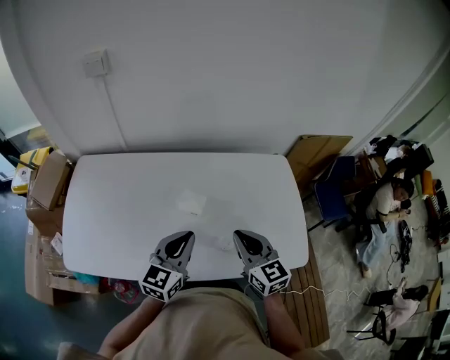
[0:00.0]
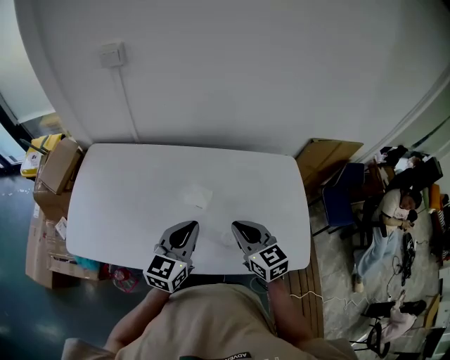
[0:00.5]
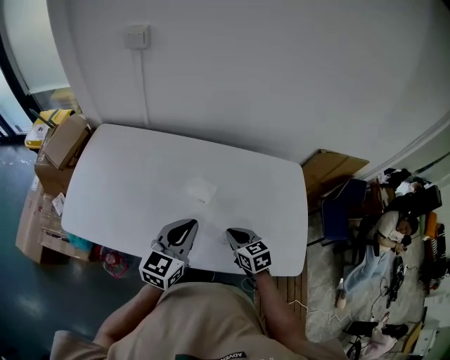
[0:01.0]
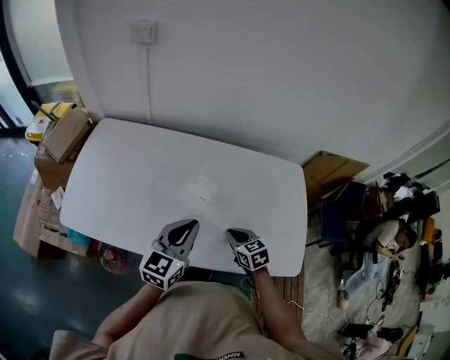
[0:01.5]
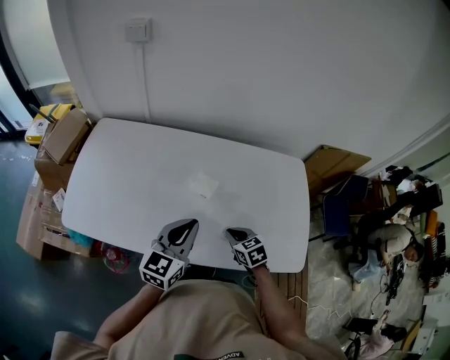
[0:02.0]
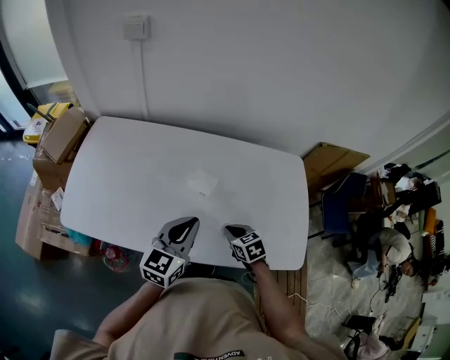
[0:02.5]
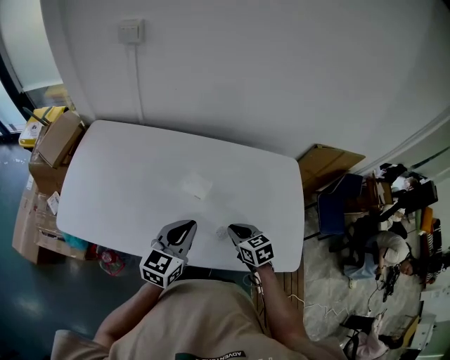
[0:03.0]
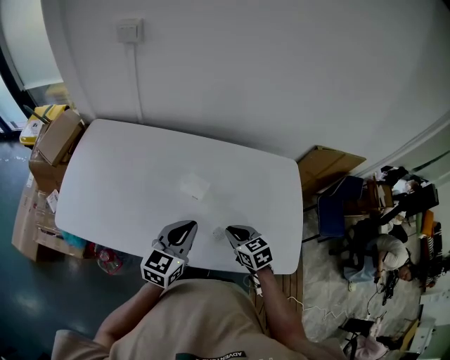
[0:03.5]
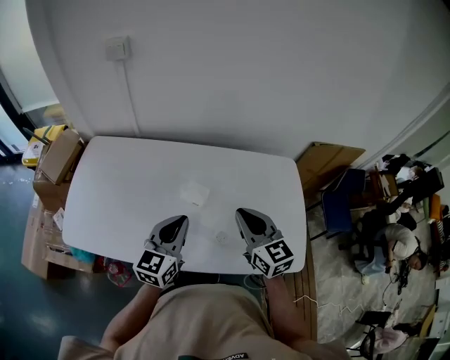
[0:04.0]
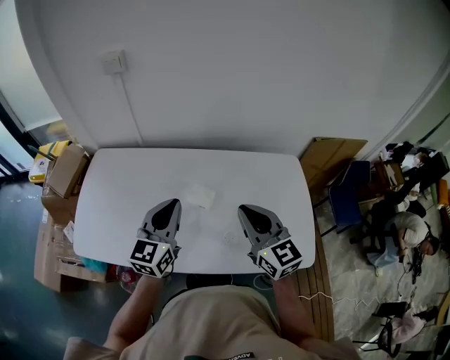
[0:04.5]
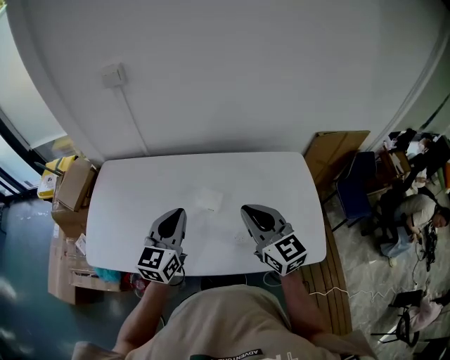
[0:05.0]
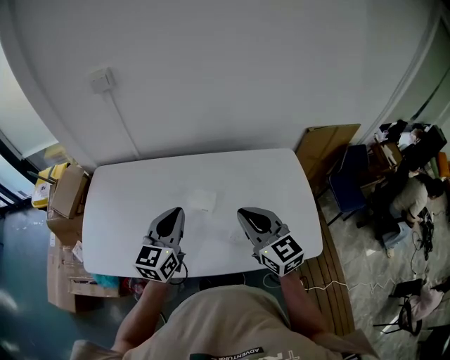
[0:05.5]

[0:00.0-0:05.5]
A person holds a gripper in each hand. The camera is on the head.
0:00.0 to 0:02.0: The right gripper heads downward, covering some 20 cm, and angles its fingers downward, by approximately 30 degrees.
0:02.0 to 0:03.5: The grippers move only a little.
0:03.5 to 0:05.5: The right gripper travels upward by approximately 20 cm, and angles its fingers upward, by about 30 degrees, while the left gripper is displaced upward and to the left by some 10 cm.

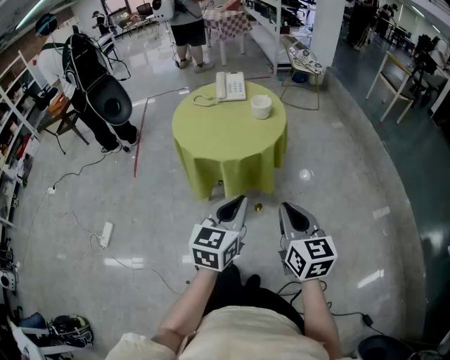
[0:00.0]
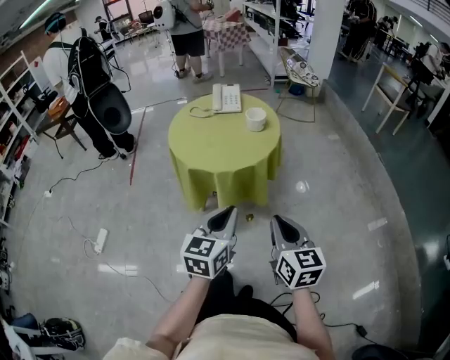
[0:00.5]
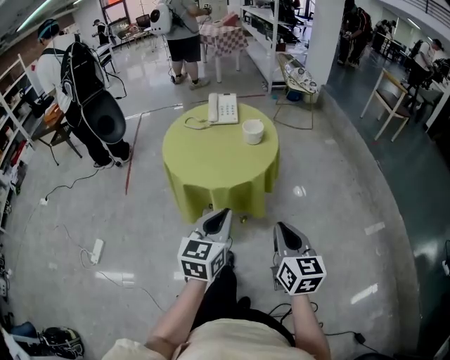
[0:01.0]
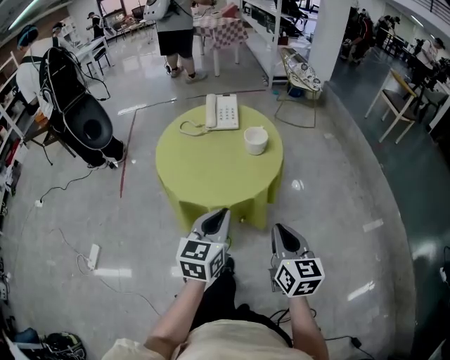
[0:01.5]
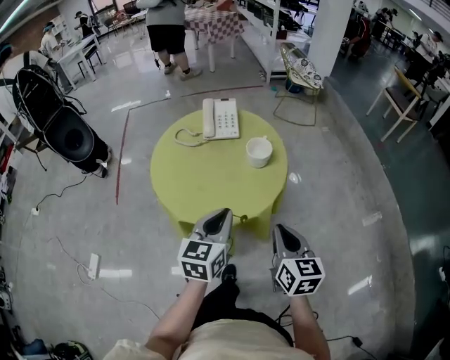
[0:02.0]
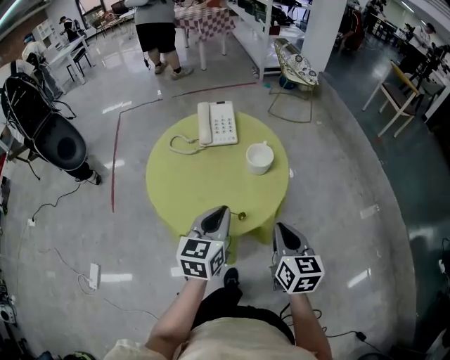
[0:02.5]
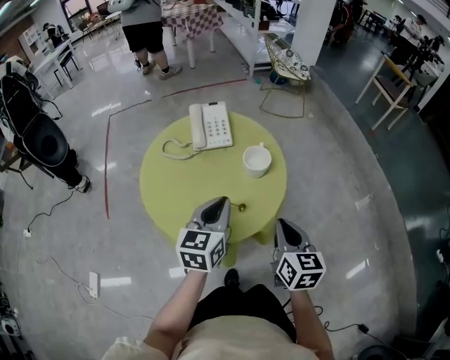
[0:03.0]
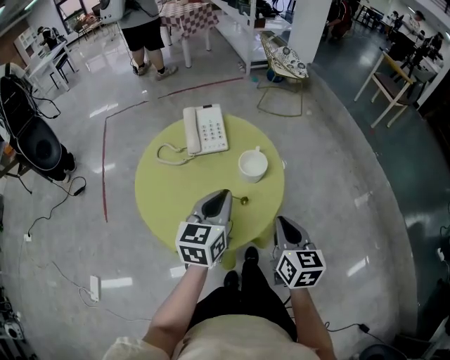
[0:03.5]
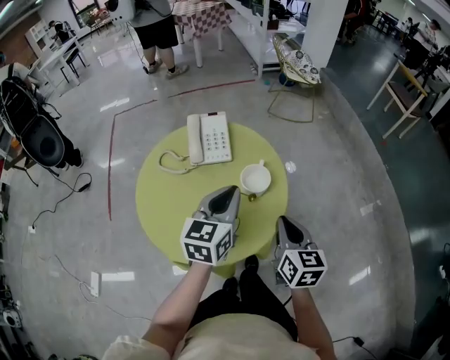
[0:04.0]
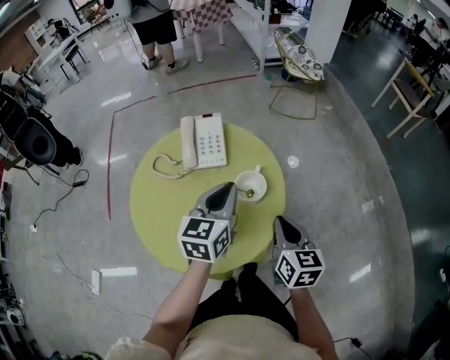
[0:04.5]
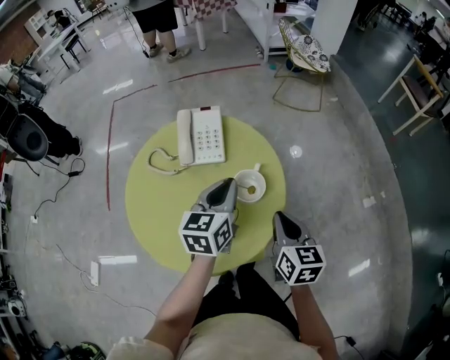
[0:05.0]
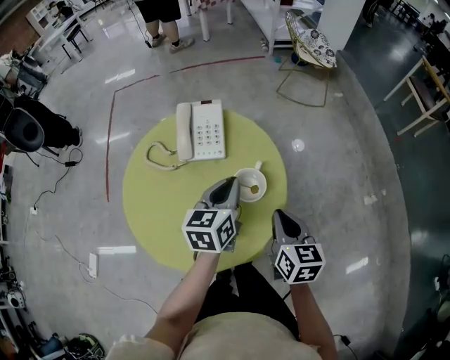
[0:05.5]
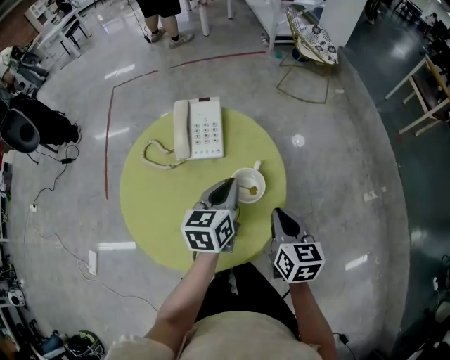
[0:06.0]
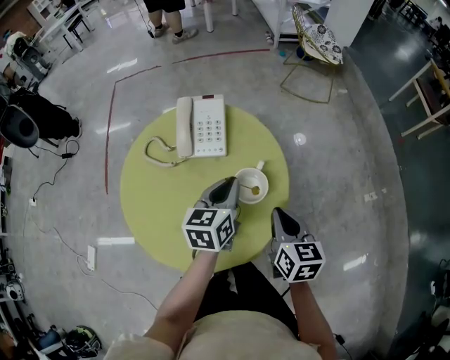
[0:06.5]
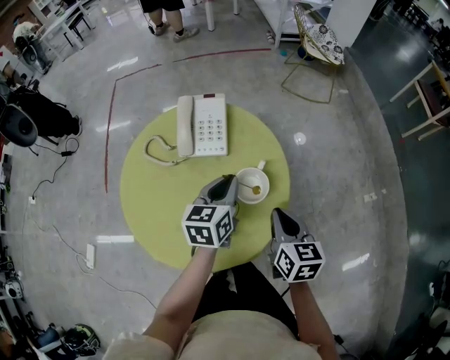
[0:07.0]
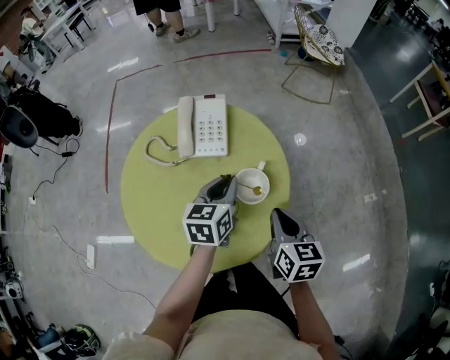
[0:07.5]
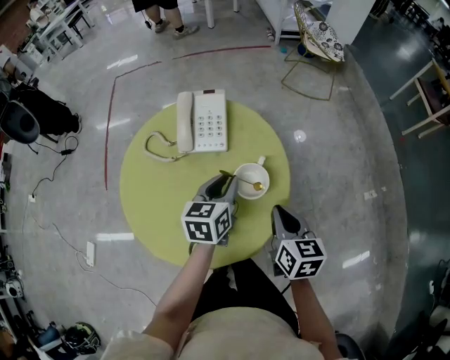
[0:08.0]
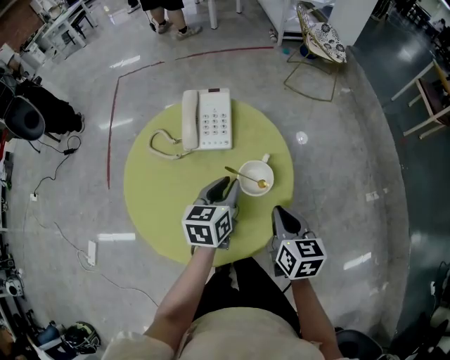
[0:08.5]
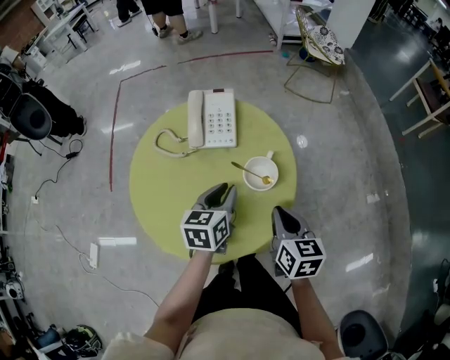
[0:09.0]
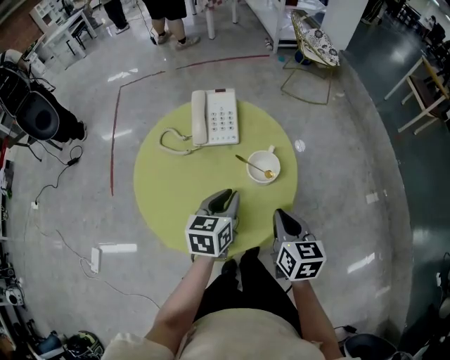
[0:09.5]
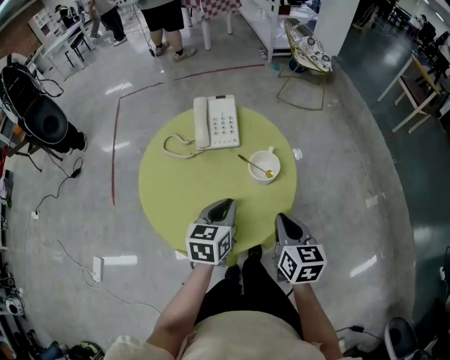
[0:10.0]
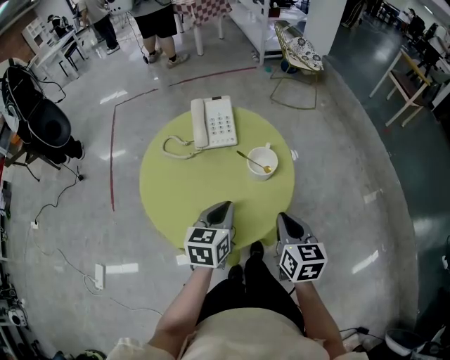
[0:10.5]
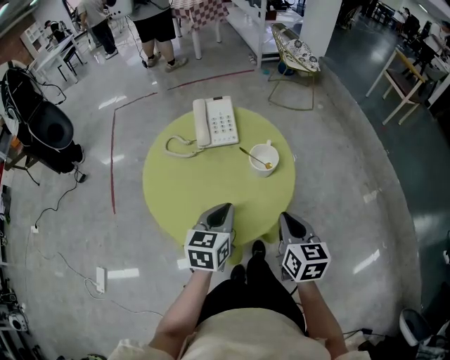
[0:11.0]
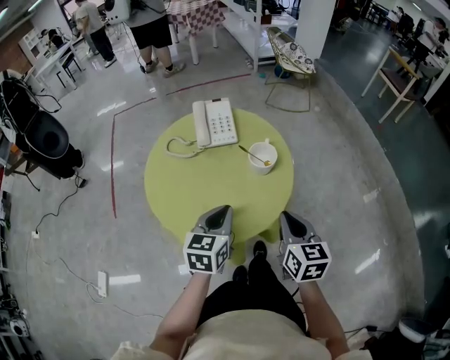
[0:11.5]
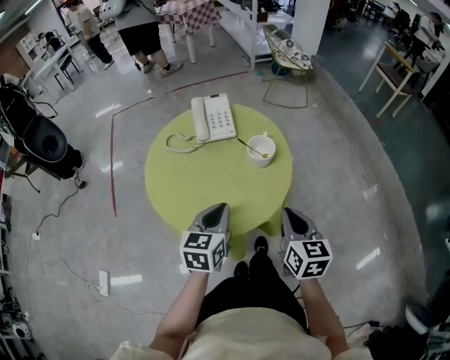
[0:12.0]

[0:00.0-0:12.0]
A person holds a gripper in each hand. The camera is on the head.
0:00.0 to 0:02.0: The grippers both shift forward by some 25 cm.
0:02.0 to 0:04.0: Both grippers move forward, some 20 cm.
0:04.0 to 0:06.0: The right gripper travels forward and downward by some 10 cm. Meanwhile the left gripper heads downward and forward, covering some 15 cm.
0:06.0 to 0:08.0: The grippers stay close to where they were, moving slightly.
0:08.0 to 0:10.0: The grippers both shift backward by some 10 cm.
0:10.0 to 0:12.0: Both grippers travel together backward, approximately 10 cm.

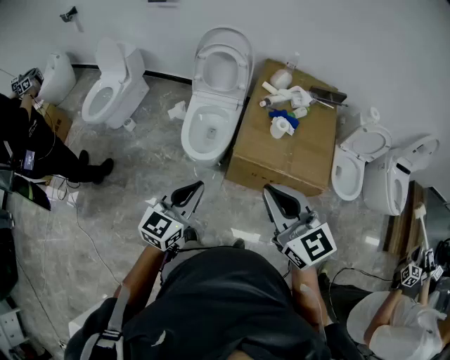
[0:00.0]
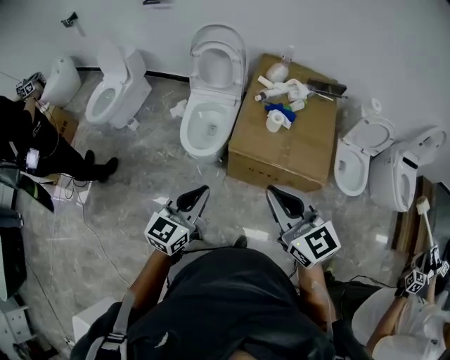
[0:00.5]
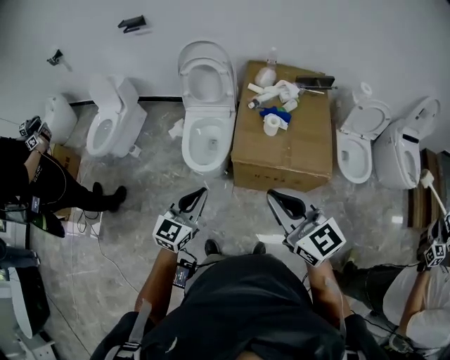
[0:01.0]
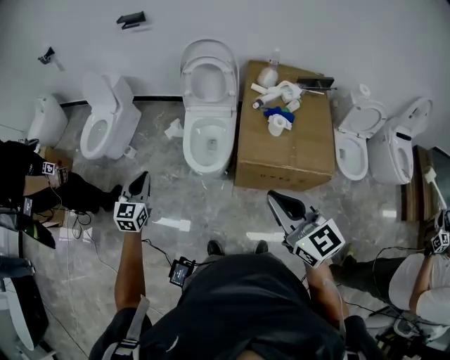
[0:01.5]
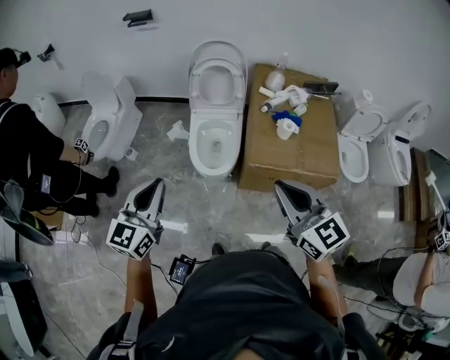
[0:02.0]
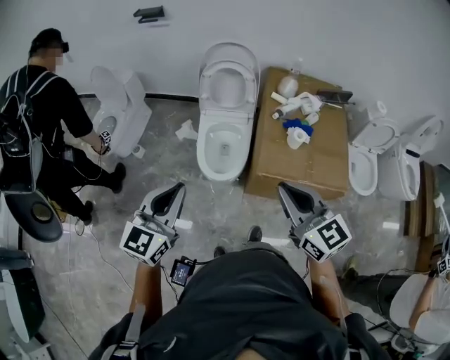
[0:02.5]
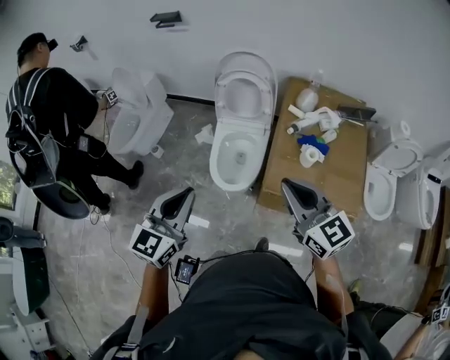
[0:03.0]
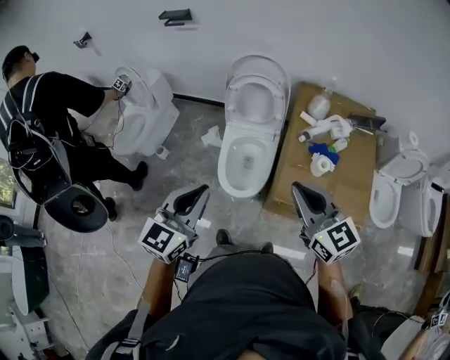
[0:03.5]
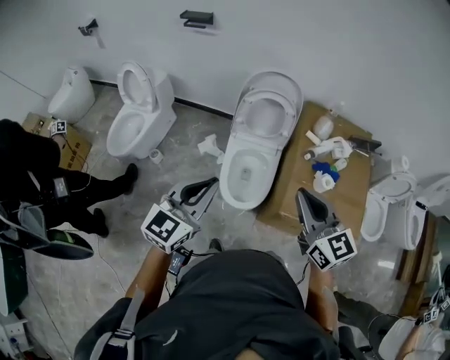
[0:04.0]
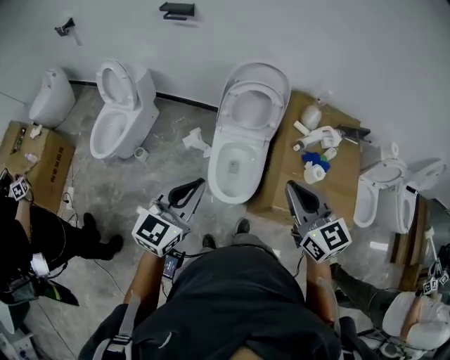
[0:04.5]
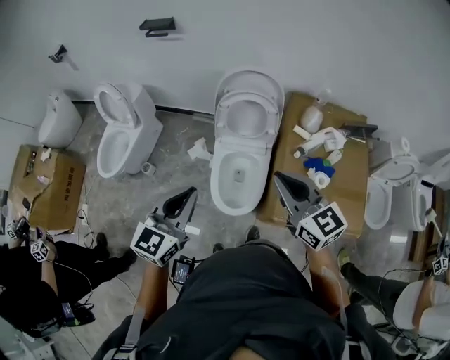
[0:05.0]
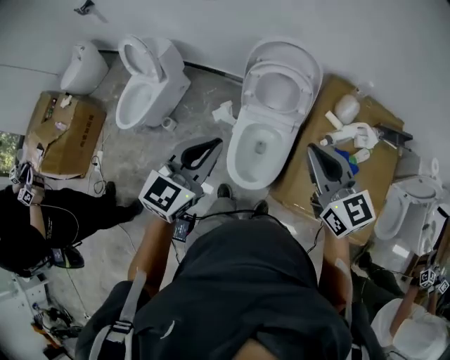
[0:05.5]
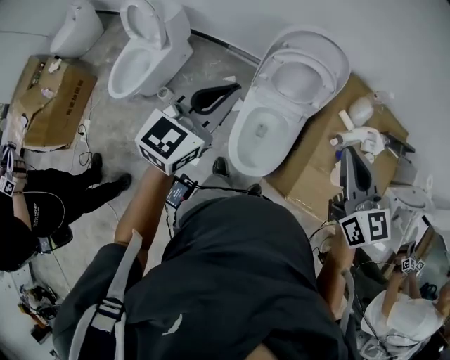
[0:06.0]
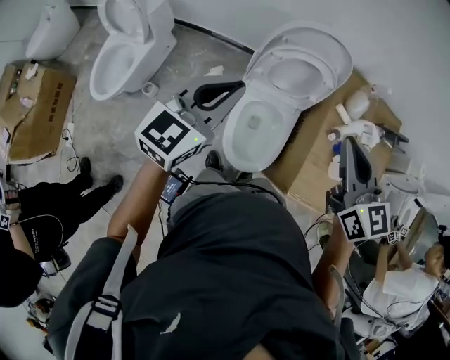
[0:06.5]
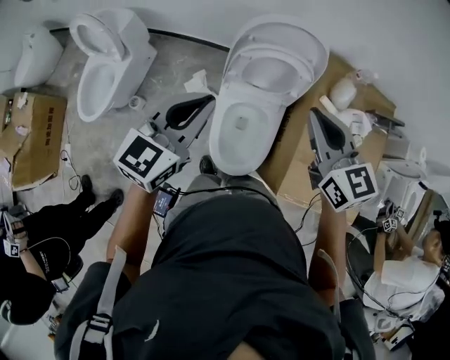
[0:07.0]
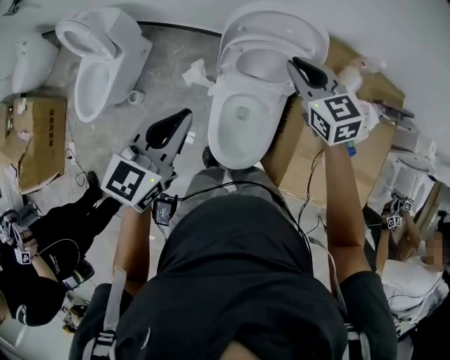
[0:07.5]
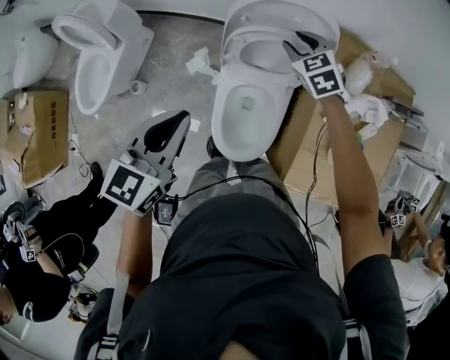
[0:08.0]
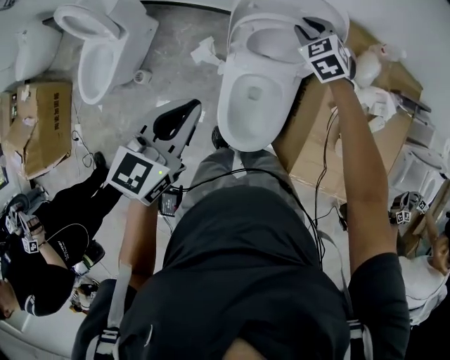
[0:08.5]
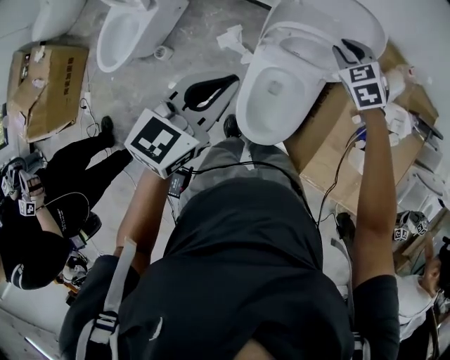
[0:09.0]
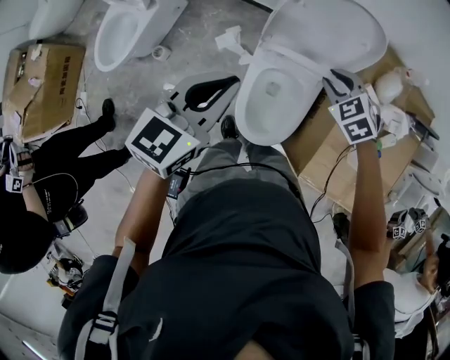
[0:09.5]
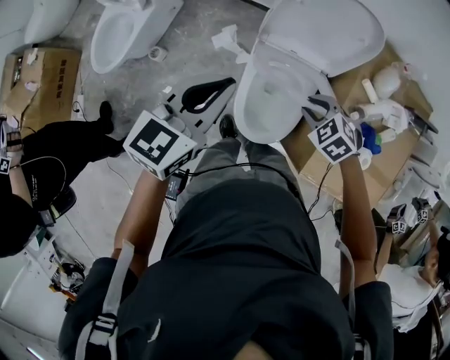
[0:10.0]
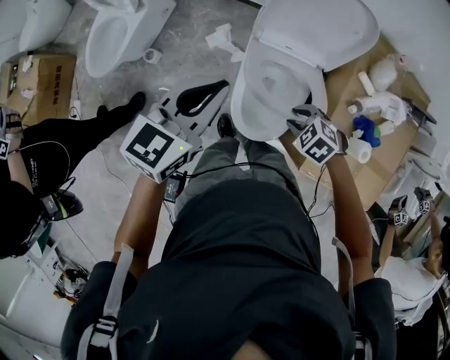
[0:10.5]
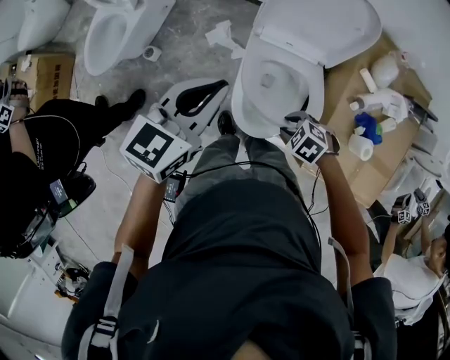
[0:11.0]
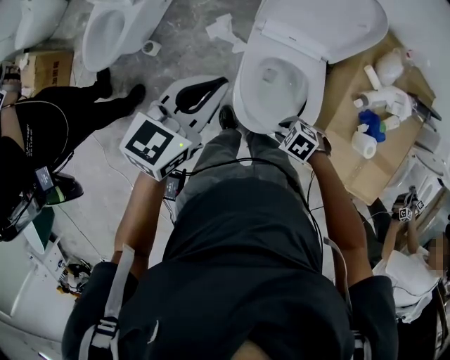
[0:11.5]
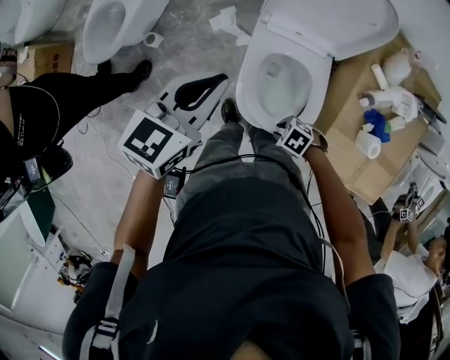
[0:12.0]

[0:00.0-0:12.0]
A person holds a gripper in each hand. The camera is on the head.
0:00.0 to 0:02.0: The left gripper moves to the left, some 20 cm; the right gripper moves to the left, about 5 cm.
0:02.0 to 0:04.0: Both grippers travel together forward, about 20 cm.
0:04.0 to 0:06.0: Both grippers travel together forward, roughly 25 cm.
0:06.0 to 0:08.0: The right gripper heads forward and downward, covering approximately 40 cm, angles its fingers downward, by some 30 degrees, and opens up, while the left gripper moves downward and forward, about 15 cm.
0:08.0 to 0:10.0: The right gripper goes approximately 25 cm backward, and changes its angle by approximately 30 degrees.
0:10.0 to 0:12.0: The left gripper moves some 5 cm. Meanwhile the right gripper shifts by approximately 25 cm, and changes its angle by approximately 30 degrees.
